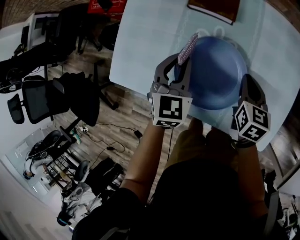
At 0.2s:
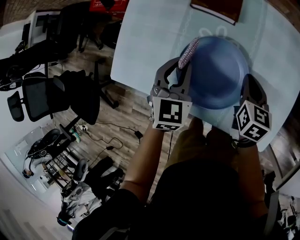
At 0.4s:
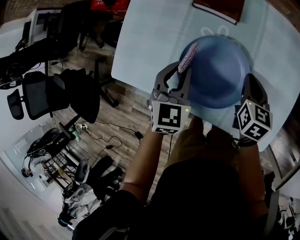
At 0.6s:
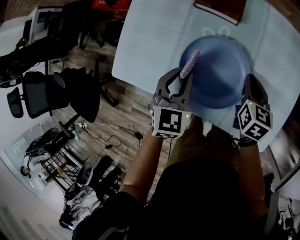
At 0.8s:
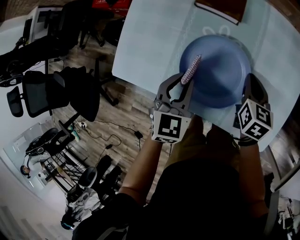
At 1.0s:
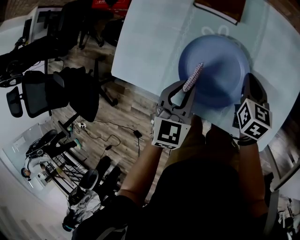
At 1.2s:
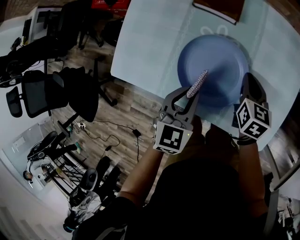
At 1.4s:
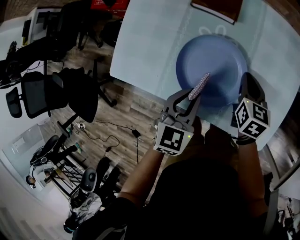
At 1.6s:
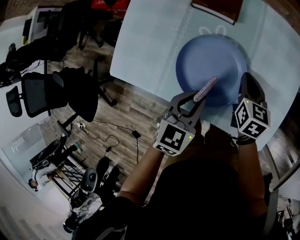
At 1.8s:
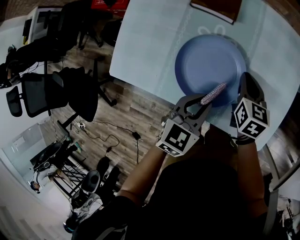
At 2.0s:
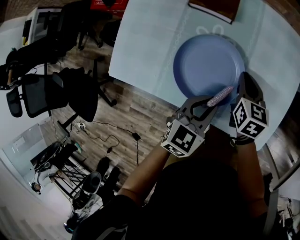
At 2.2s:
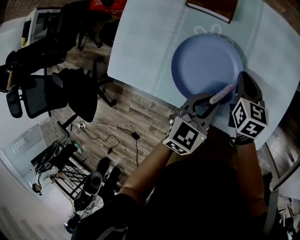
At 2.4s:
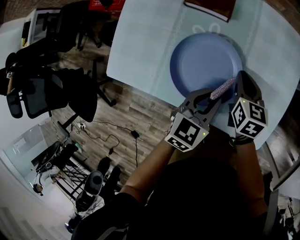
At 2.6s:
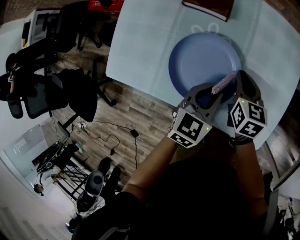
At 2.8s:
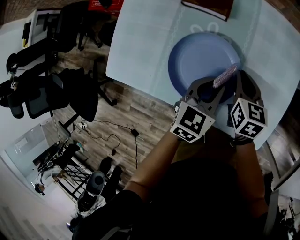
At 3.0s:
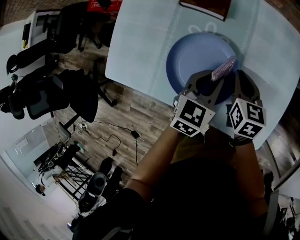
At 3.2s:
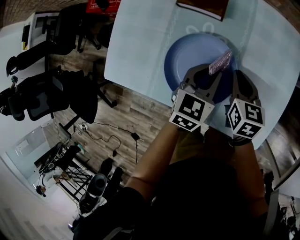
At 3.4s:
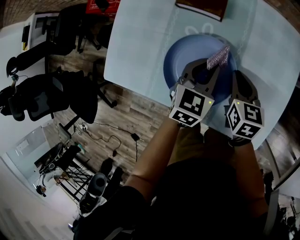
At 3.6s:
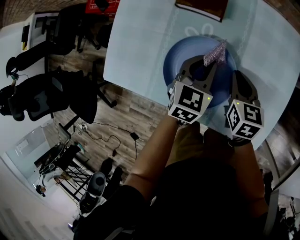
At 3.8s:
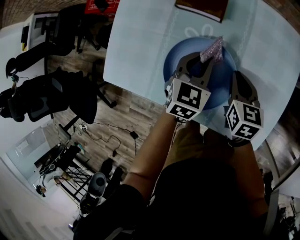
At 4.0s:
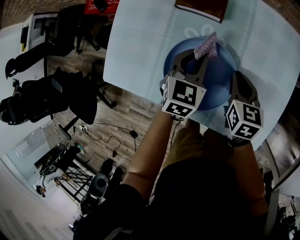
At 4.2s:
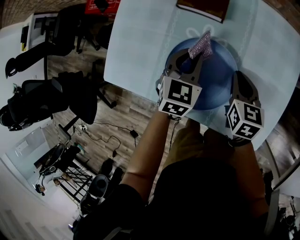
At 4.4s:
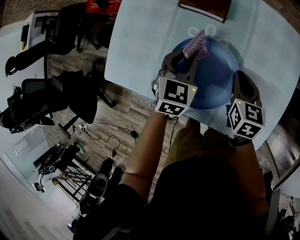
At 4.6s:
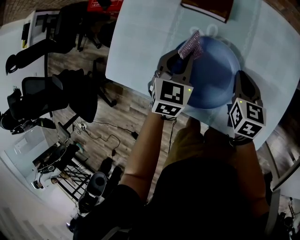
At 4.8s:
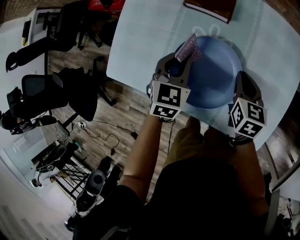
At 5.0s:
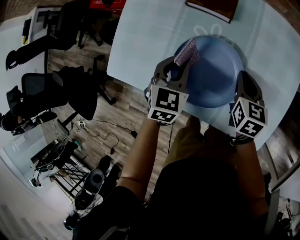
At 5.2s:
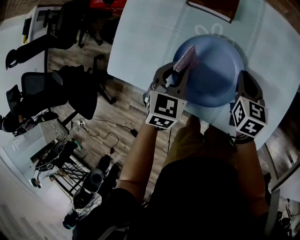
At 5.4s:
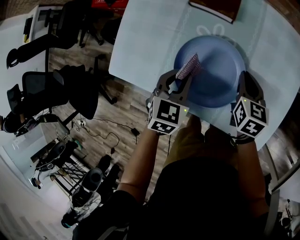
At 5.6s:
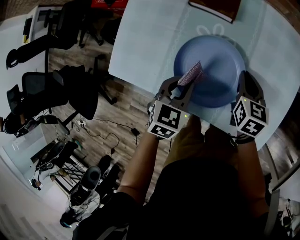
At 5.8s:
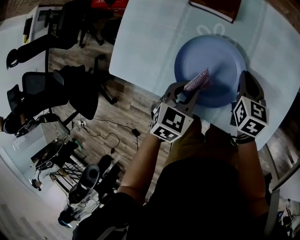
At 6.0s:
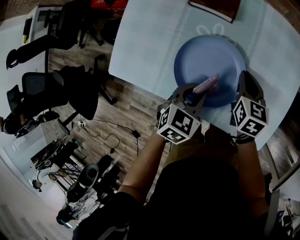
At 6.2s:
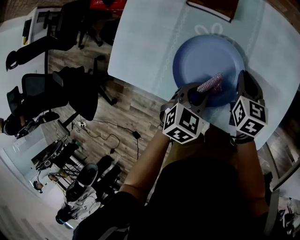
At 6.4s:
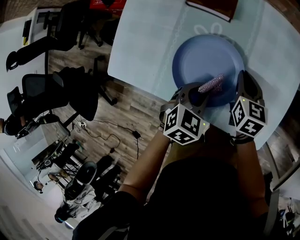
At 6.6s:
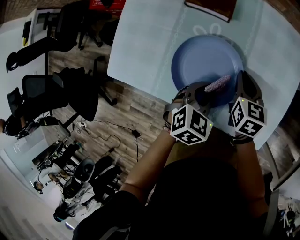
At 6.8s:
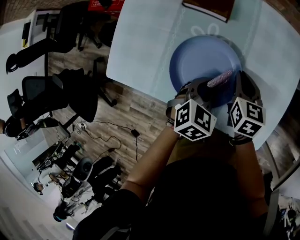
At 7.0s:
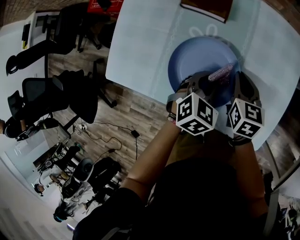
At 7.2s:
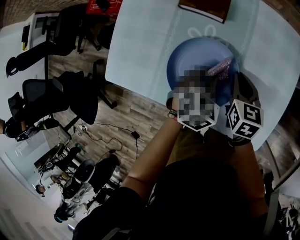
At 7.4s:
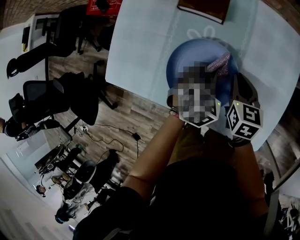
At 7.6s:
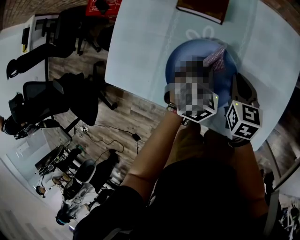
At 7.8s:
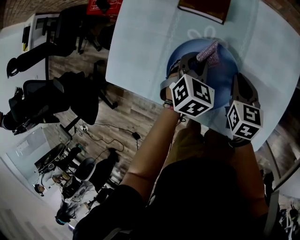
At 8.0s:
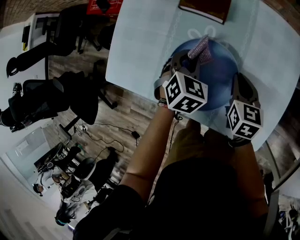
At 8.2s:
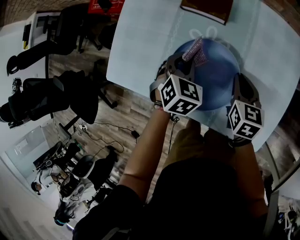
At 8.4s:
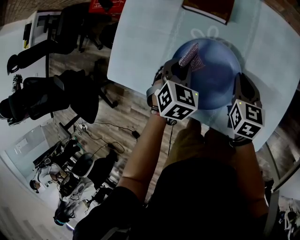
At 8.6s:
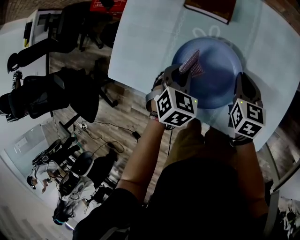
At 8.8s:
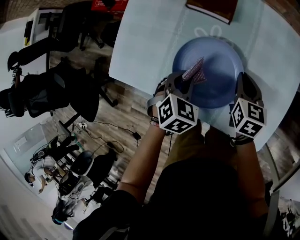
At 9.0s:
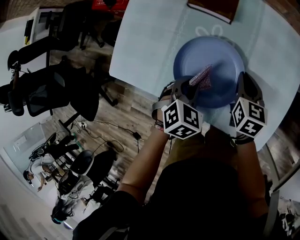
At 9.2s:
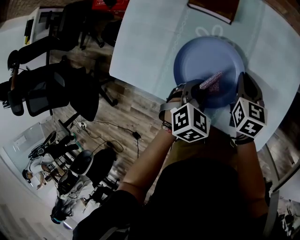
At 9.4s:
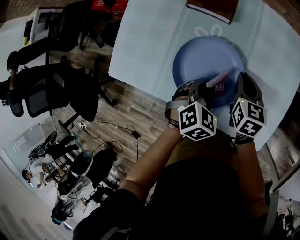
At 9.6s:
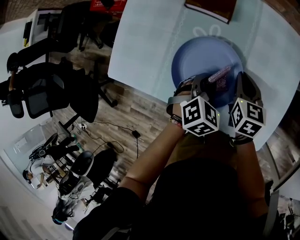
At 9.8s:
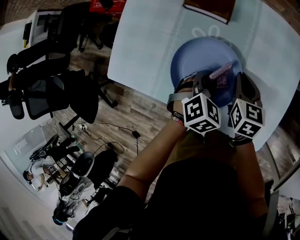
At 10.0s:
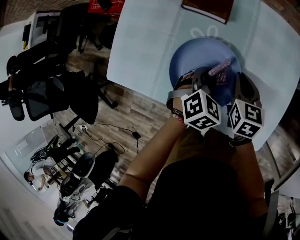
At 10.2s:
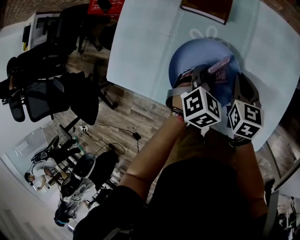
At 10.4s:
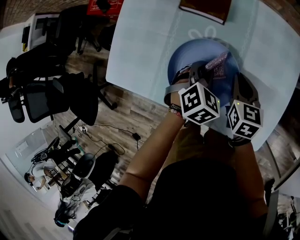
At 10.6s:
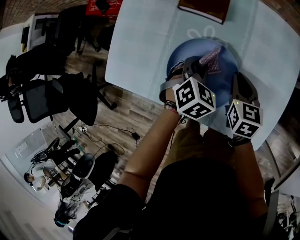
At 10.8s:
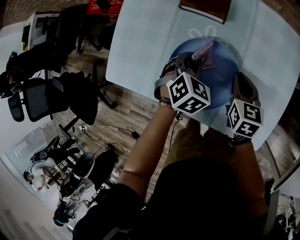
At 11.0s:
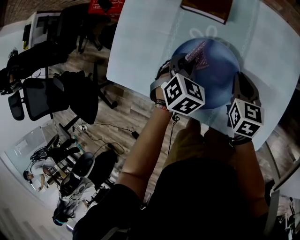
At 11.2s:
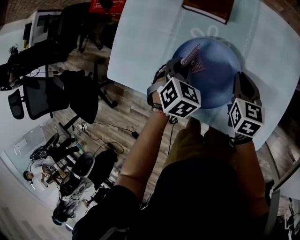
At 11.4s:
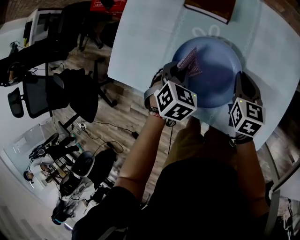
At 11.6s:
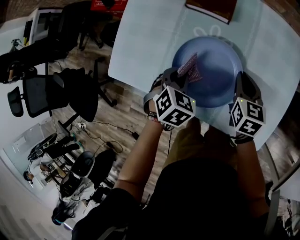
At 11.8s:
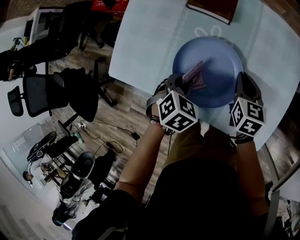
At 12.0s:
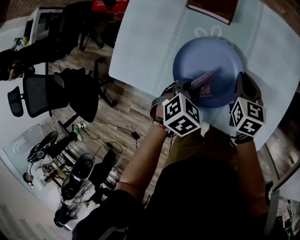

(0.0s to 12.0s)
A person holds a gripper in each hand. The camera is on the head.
0.0s - 1.6s: The left gripper travels backward and to the right by roughly 15 cm, and rotates some 20 degrees.
1.6s - 3.0s: The left gripper shifts some 10 cm forward and to the right.
3.0s - 4.4s: The left gripper goes some 10 cm to the left and forward.
4.4s - 6.0s: The left gripper moves backward, some 10 cm.
6.0s - 7.6s: The left gripper is displaced forward by some 10 cm.
7.6s - 9.0s: The left gripper heads backward and to the left, covering roughly 10 cm.
9.0s - 10.4s: The left gripper shifts approximately 10 cm forward and to the right.
10.4s - 12.0s: The left gripper heads backward and to the left, covering approximately 10 cm.

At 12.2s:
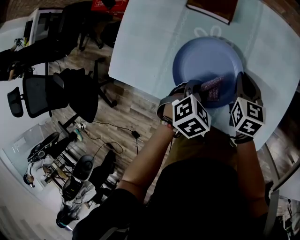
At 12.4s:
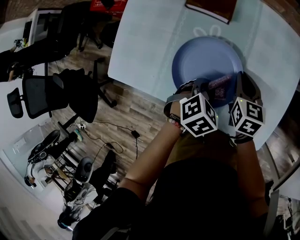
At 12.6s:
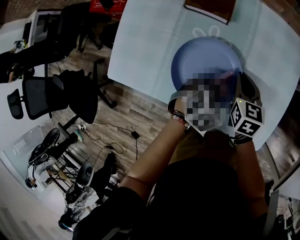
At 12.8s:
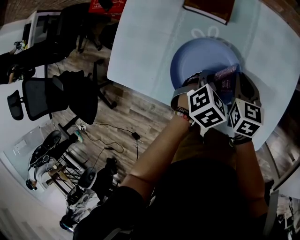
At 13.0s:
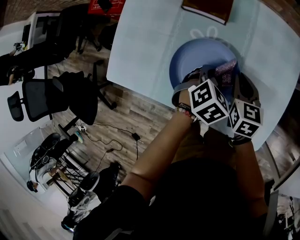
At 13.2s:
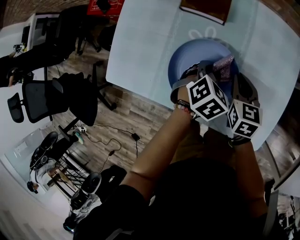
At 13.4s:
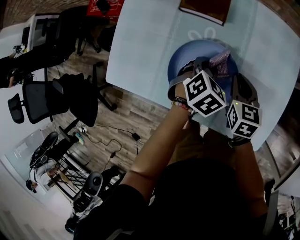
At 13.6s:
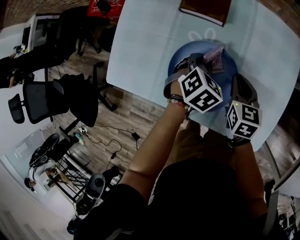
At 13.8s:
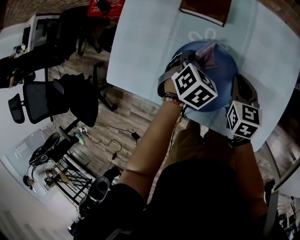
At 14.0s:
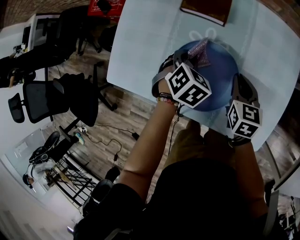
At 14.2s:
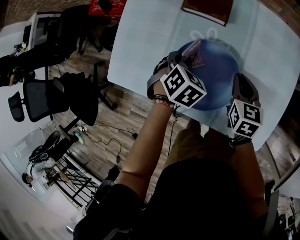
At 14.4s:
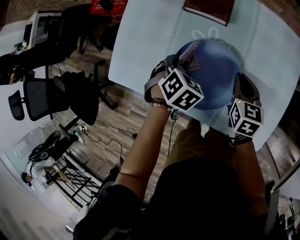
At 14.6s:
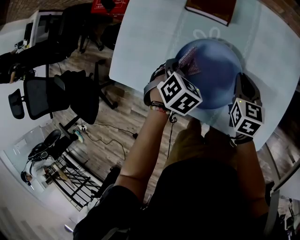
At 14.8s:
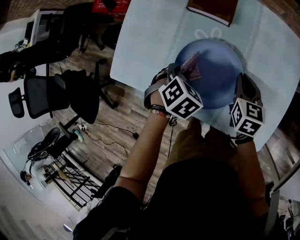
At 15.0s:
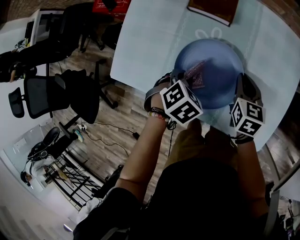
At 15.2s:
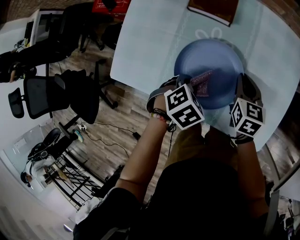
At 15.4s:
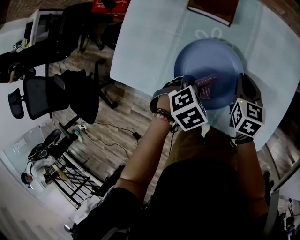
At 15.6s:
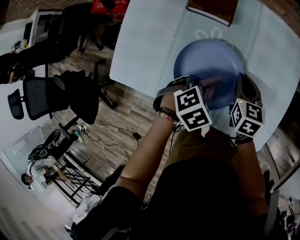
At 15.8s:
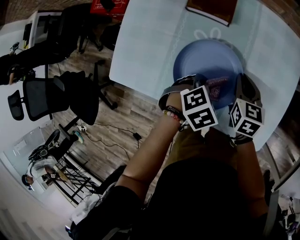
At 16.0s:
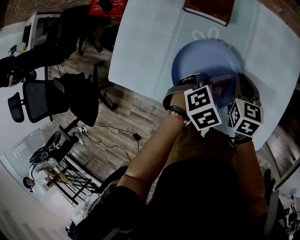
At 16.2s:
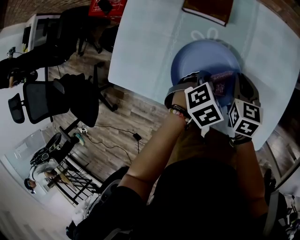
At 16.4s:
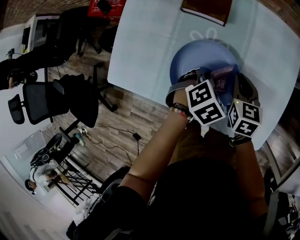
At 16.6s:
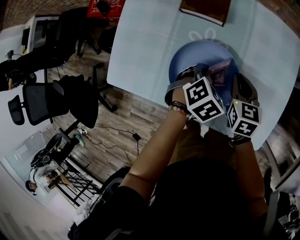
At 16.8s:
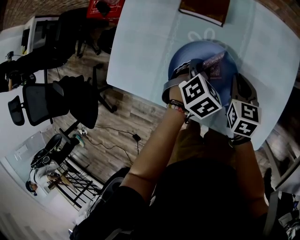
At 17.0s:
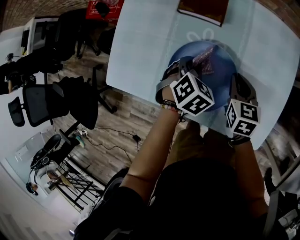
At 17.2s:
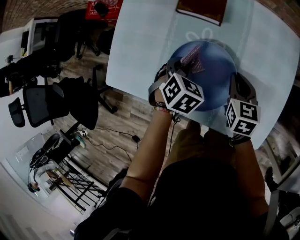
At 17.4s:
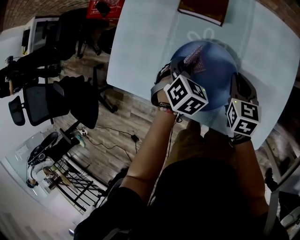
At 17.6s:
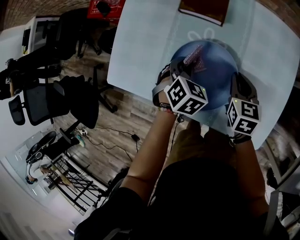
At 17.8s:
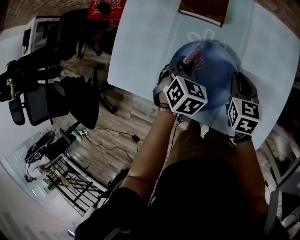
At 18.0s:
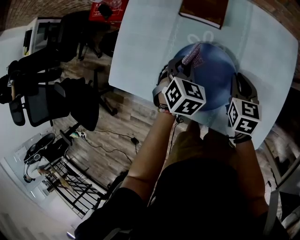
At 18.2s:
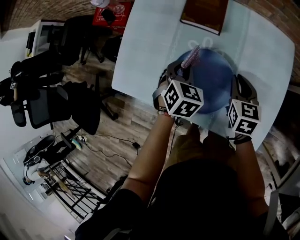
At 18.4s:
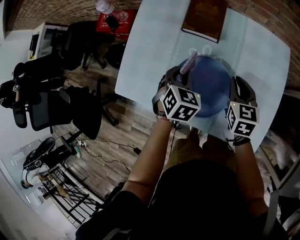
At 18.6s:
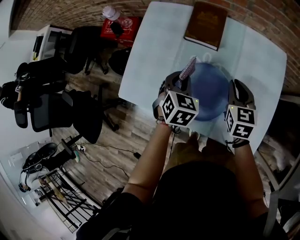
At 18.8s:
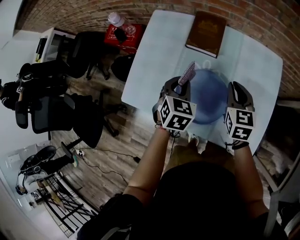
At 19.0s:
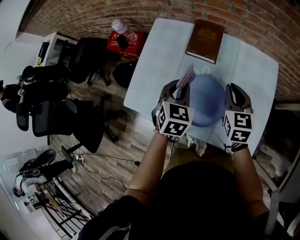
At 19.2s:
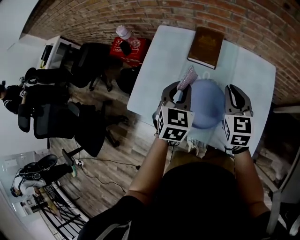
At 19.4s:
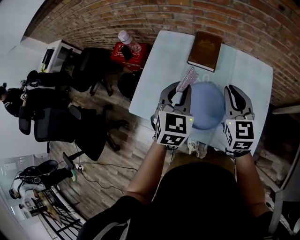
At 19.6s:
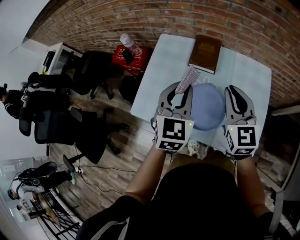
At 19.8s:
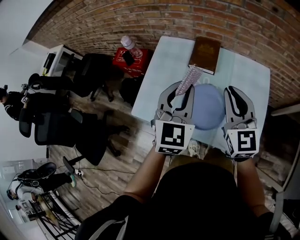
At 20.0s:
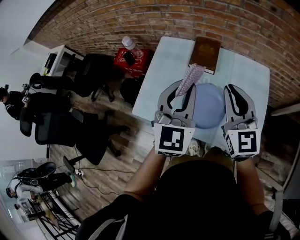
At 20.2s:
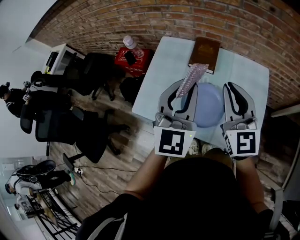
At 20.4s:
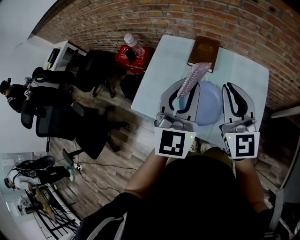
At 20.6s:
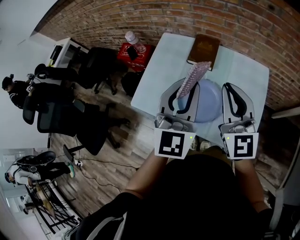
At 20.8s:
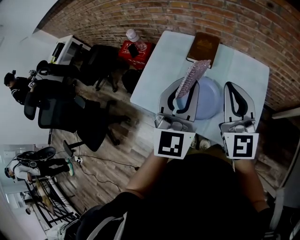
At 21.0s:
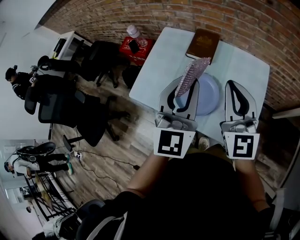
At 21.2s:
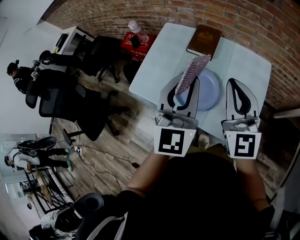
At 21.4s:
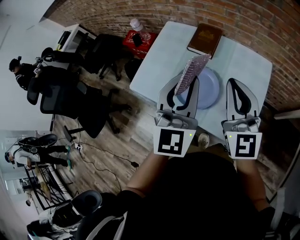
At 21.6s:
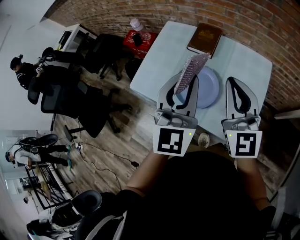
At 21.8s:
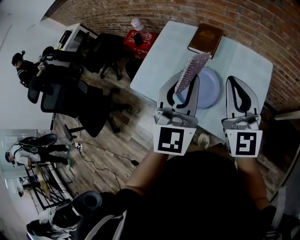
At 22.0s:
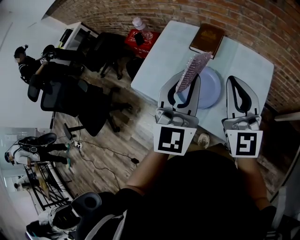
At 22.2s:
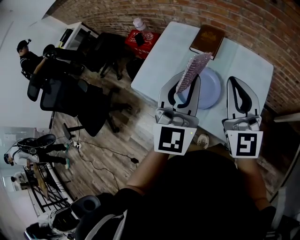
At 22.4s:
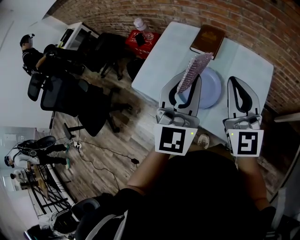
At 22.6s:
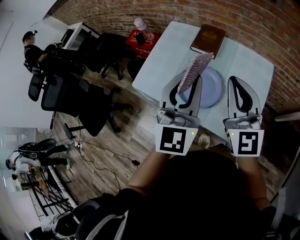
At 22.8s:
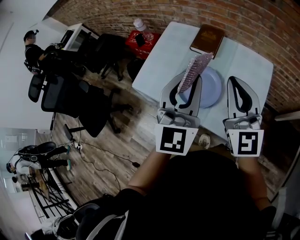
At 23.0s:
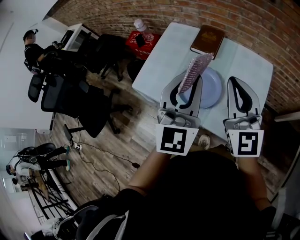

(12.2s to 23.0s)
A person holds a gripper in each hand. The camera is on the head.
12.2s - 13.8s: The left gripper travels forward by some 10 cm.
13.8s - 15.2s: The left gripper ends up some 10 cm from where it was.
15.2s - 16.8s: The left gripper moves approximately 10 cm.
16.8s - 18.4s: The right gripper moves upward, roughly 5 cm, while the left gripper goes roughly 10 cm upward and to the left, and turns by roughly 20 degrees.
18.4s - 20.0s: Both grippers travel together upward, approximately 30 cm. The left gripper tilts its fingers some 40 degrees upward. Meanwhile the right gripper tips its fingers upward by some 40 degrees.
20.0s - 21.4s: Both grippers move to the right and backward, roughly 10 cm.
21.4s - 23.0s: There are only small adjustments of the grippers.

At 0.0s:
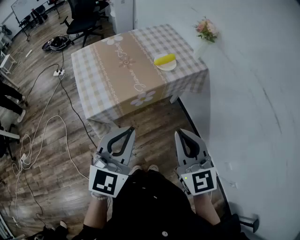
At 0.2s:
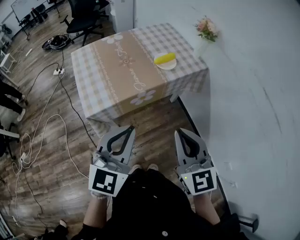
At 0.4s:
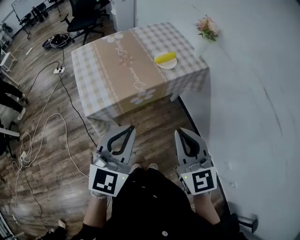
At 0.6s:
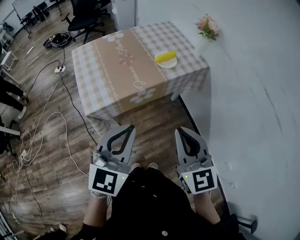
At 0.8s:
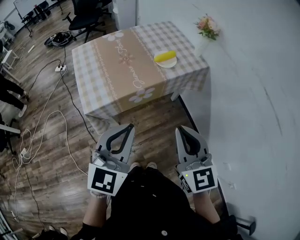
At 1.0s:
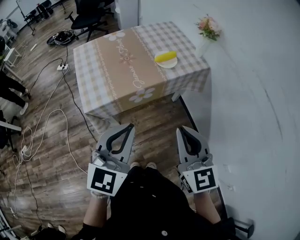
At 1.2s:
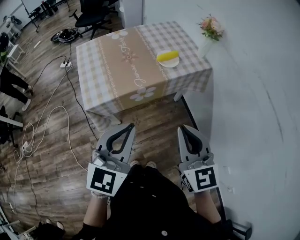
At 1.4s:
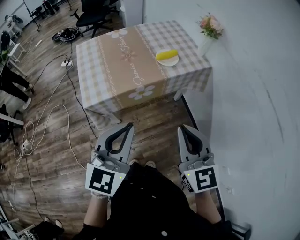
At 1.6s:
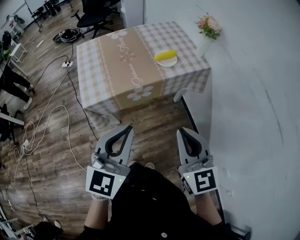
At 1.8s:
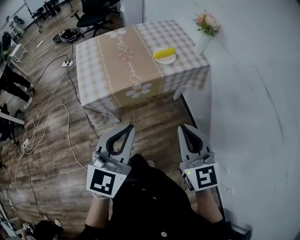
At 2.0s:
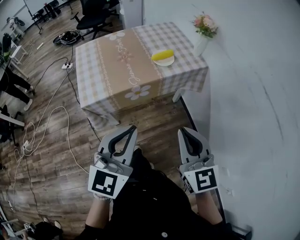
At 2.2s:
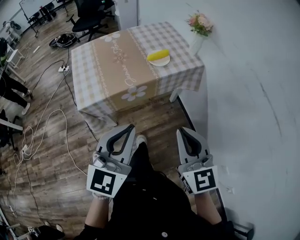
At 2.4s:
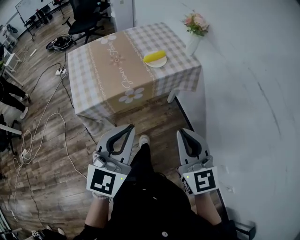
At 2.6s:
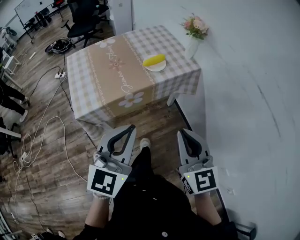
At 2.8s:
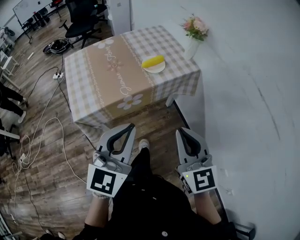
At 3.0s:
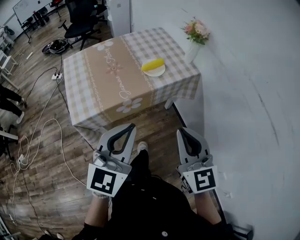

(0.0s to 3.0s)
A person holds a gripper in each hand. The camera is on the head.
0.0s - 1.6s: The grippers both shift to the right by about 5 cm.
1.6s - 3.0s: The grippers both shift forward by roughly 5 cm.
